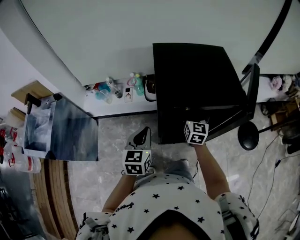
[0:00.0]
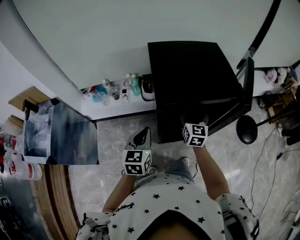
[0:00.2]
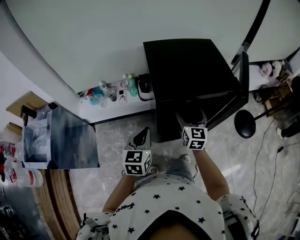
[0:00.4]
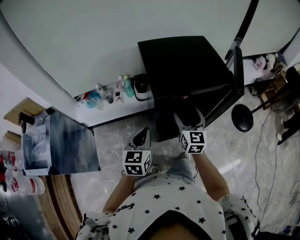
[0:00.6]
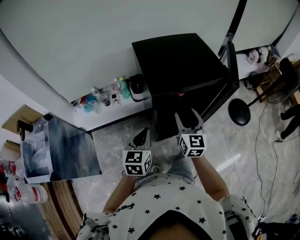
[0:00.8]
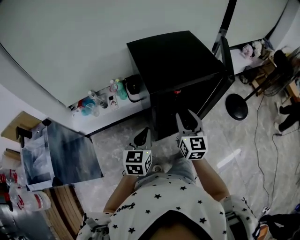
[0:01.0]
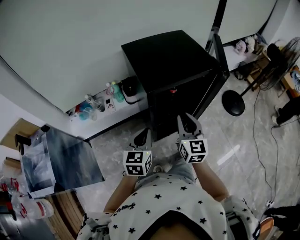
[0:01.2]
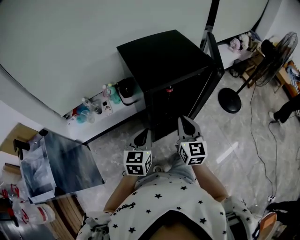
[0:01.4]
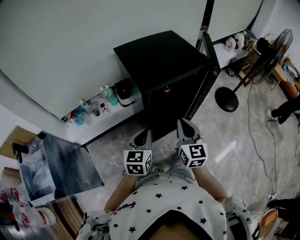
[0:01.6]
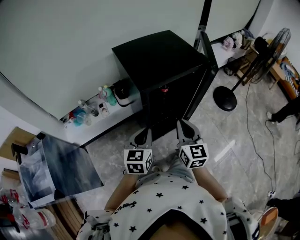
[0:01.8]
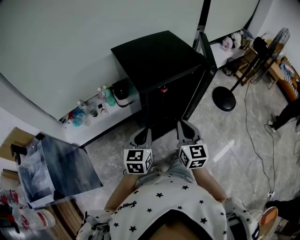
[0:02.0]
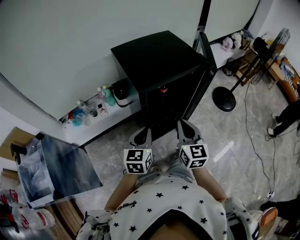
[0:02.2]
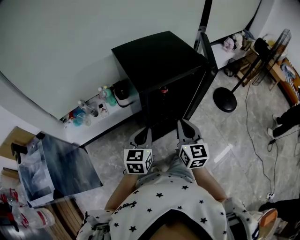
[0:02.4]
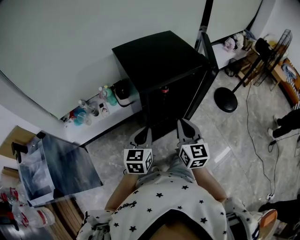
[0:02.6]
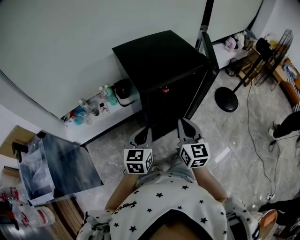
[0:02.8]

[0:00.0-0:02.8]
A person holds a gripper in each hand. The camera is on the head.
0.0 to 1.4 s: The right gripper heads backward, covering approximately 20 cm, and closes up, while the left gripper is displaced backward by approximately 5 cm, and rotates approximately 20 degrees.
1.4 to 2.8 s: There are only small adjustments of the grippers.

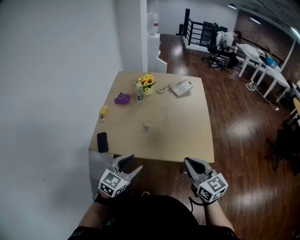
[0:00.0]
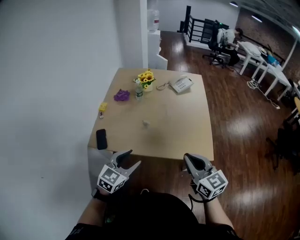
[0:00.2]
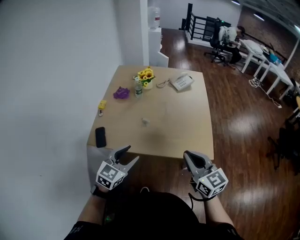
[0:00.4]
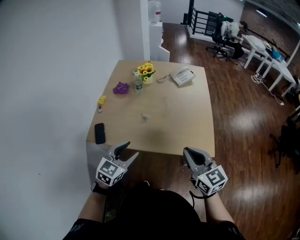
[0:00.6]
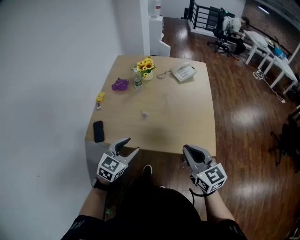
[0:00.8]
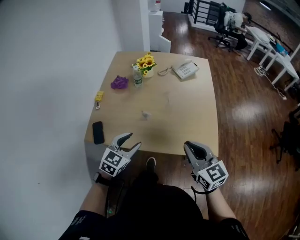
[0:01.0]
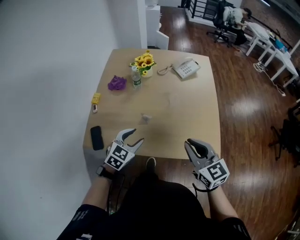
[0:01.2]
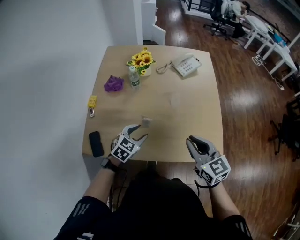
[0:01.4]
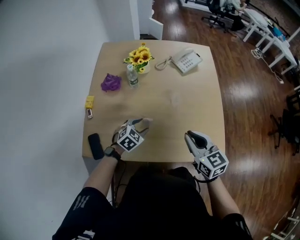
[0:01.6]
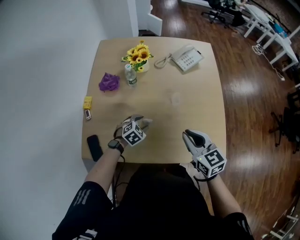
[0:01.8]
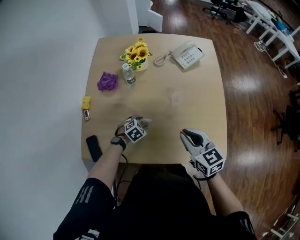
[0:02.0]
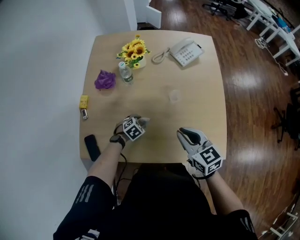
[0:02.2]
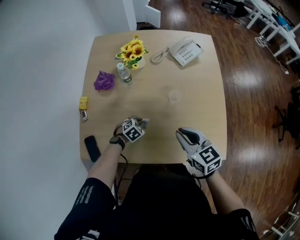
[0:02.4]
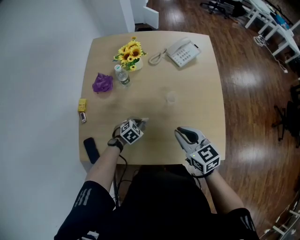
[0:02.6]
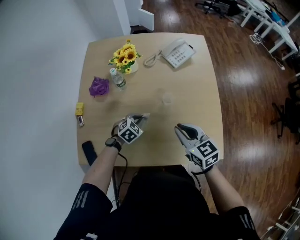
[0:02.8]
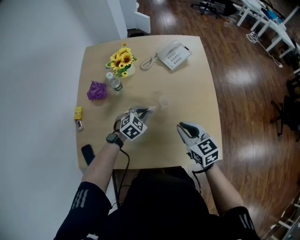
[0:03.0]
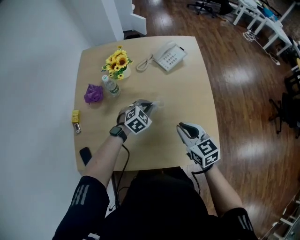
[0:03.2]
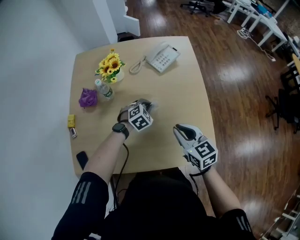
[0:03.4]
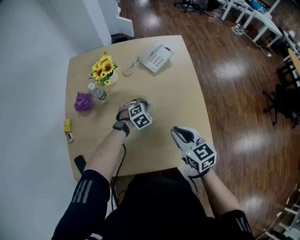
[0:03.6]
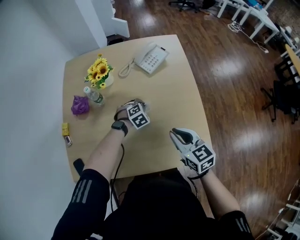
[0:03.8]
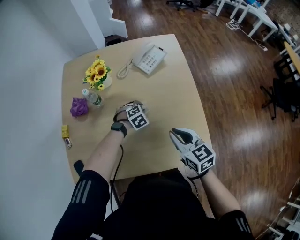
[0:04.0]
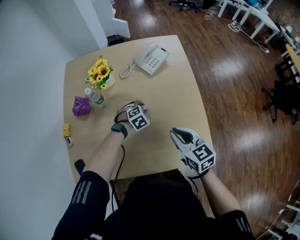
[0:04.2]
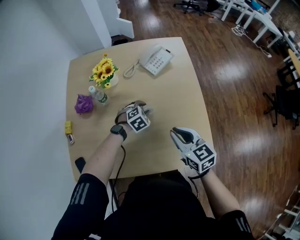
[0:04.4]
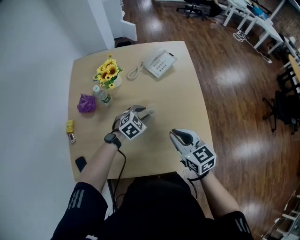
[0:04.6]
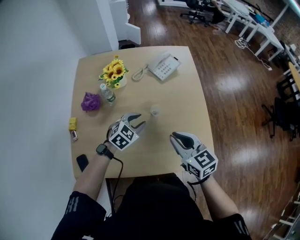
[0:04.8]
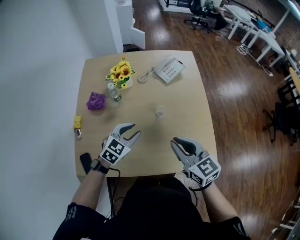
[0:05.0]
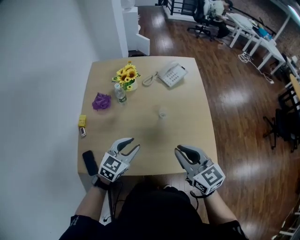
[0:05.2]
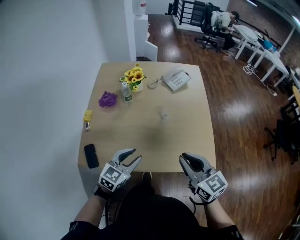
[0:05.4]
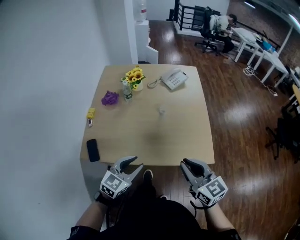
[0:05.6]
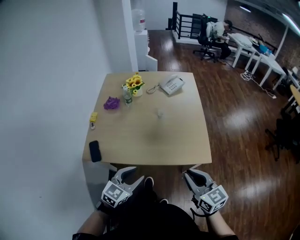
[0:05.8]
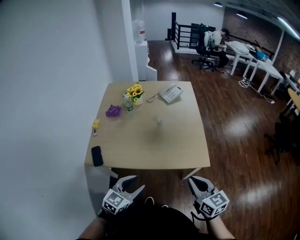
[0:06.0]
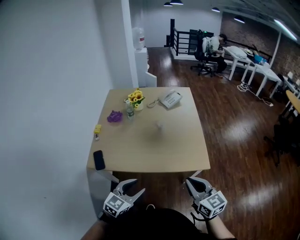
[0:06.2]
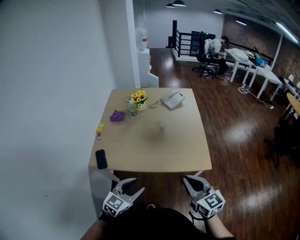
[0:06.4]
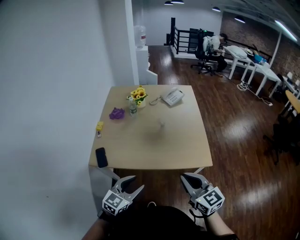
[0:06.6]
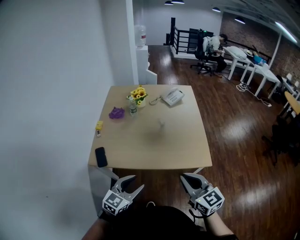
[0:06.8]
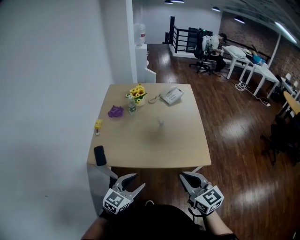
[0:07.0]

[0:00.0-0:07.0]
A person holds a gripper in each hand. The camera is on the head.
0.0 to 1.4 s: The right gripper shifts about 20 cm forward, while the left gripper goes roughly 30 cm forward and downward.
1.4 to 2.8 s: Both grippers move forward and downward, approximately 15 cm. The left gripper closes up.
2.8 to 4.2 s: The left gripper moves to the right and forward, some 15 cm, changes its angle by some 20 degrees, and opens its fingers, while the right gripper travels to the right by some 10 cm.
4.2 to 5.6 s: The right gripper moves backward and upward, approximately 30 cm. Meanwhile the left gripper heads backward and upward, covering about 50 cm, and points its fingers some 40 degrees further upward.
5.6 to 7.0 s: The grippers both shift backward by roughly 15 cm.

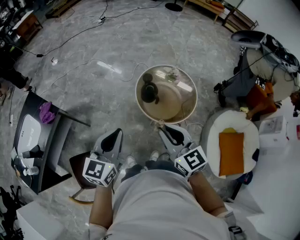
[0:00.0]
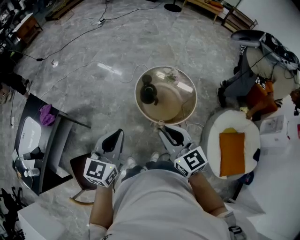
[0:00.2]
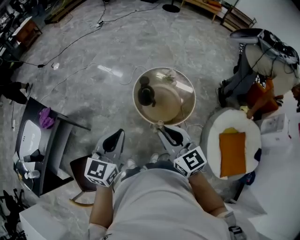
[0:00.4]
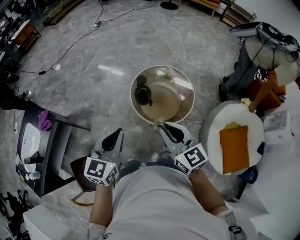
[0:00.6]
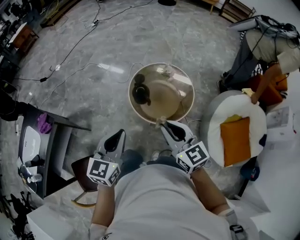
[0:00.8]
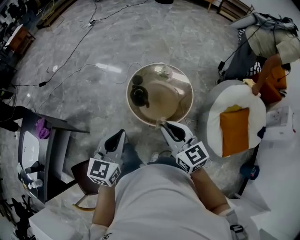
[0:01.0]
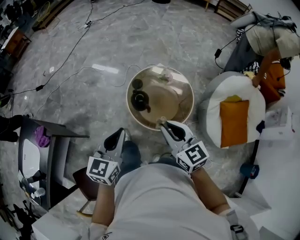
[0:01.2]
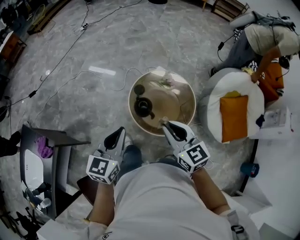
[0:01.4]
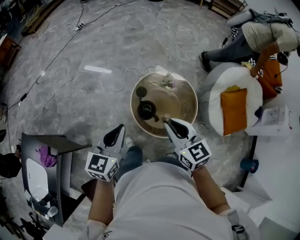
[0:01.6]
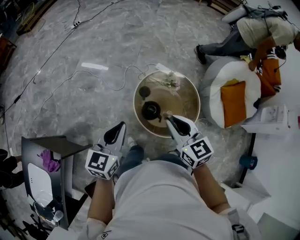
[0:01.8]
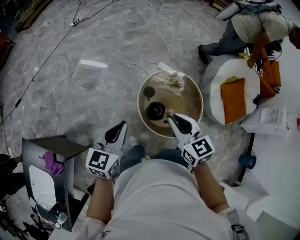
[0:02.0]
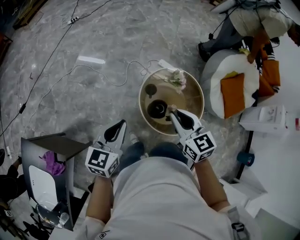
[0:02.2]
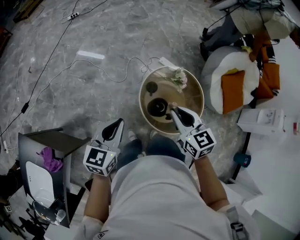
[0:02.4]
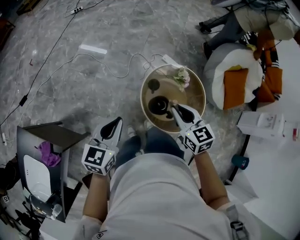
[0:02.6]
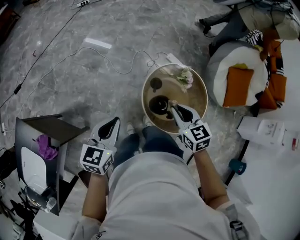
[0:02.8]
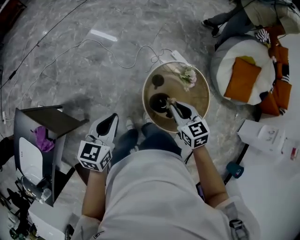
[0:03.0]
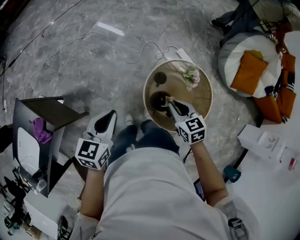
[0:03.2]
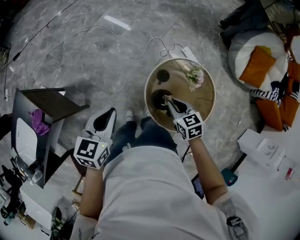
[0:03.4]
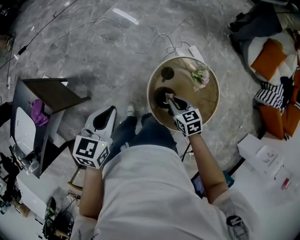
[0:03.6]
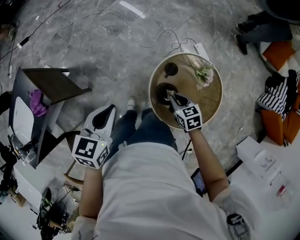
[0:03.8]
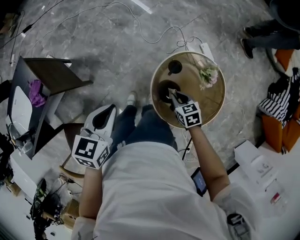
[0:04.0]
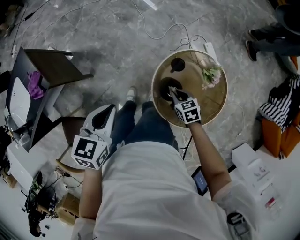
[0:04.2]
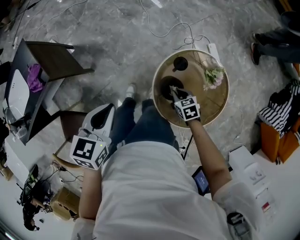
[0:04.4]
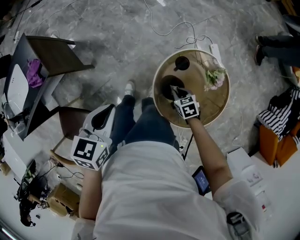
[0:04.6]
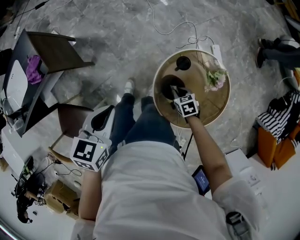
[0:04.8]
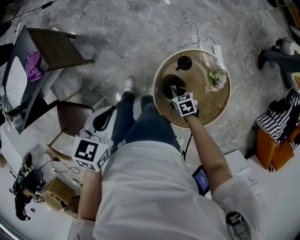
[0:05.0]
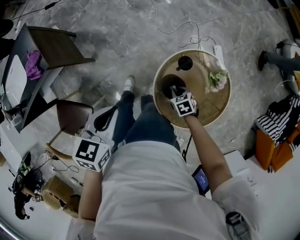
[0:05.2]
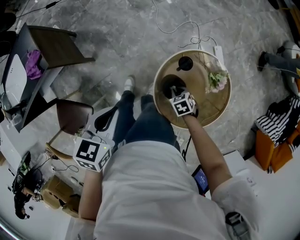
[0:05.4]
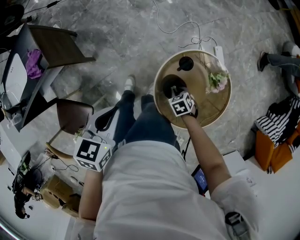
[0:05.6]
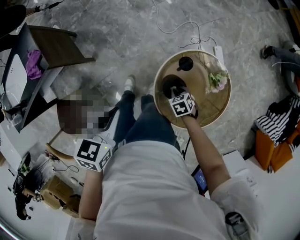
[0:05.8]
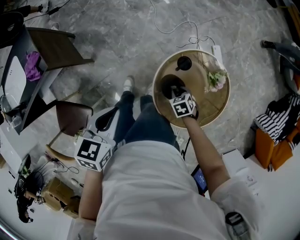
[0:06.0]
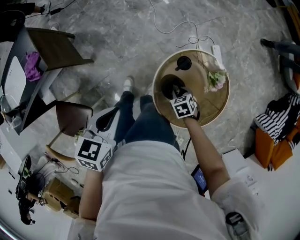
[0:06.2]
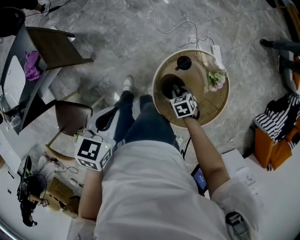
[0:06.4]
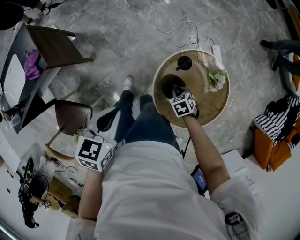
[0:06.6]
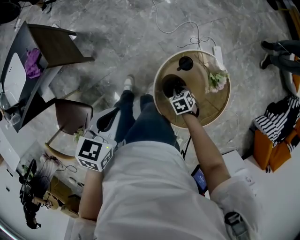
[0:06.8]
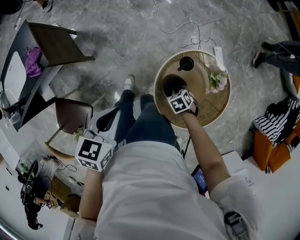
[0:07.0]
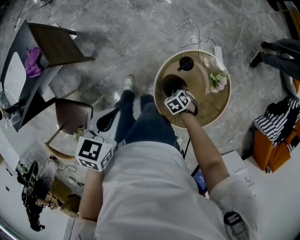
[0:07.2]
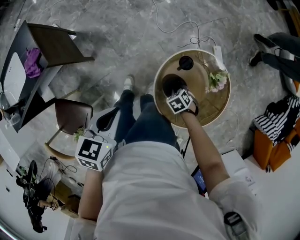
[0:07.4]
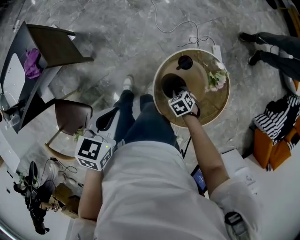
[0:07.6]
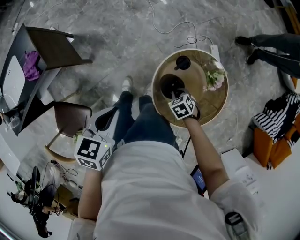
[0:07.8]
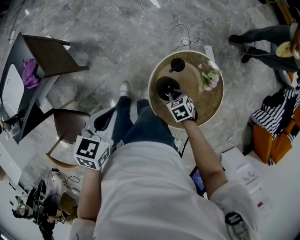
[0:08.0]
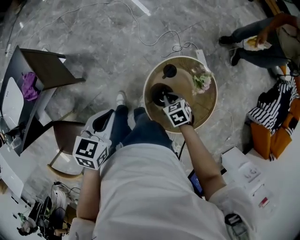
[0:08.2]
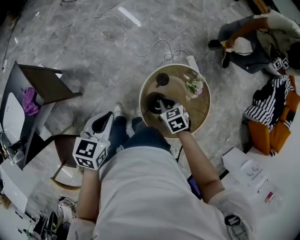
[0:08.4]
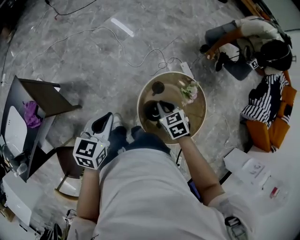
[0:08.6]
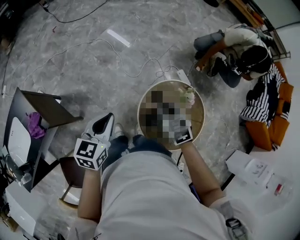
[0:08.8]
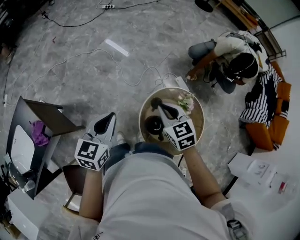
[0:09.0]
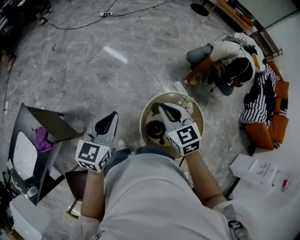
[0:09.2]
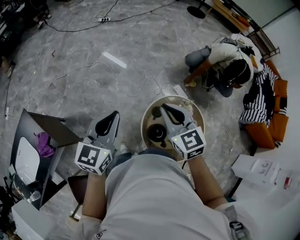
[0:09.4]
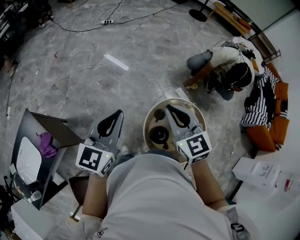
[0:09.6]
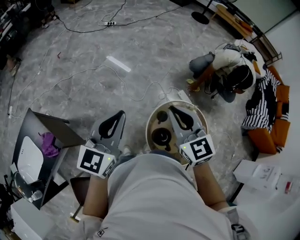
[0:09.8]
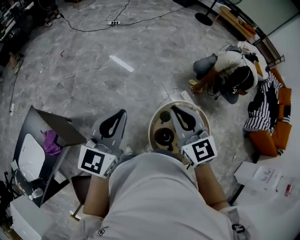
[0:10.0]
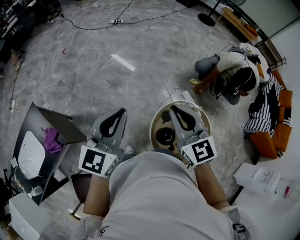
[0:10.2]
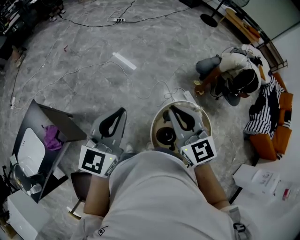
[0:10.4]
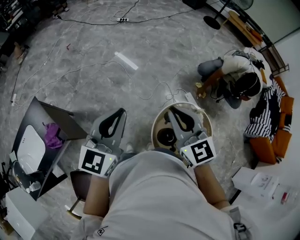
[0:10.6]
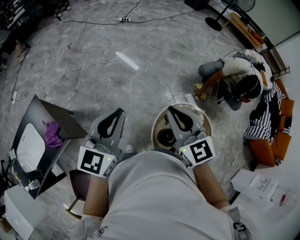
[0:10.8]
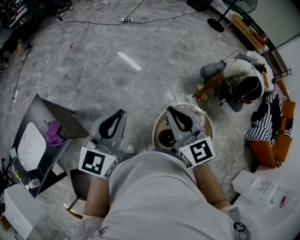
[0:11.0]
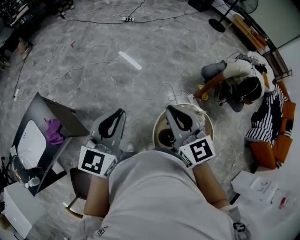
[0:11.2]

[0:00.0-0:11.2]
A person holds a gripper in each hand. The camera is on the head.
0.0 to 1.6 s: Both grippers move forward, roughly 25 cm.
1.6 to 3.2 s: The right gripper shifts about 20 cm downward and forward, and turns by some 30 degrees, while the left gripper goes approximately 15 cm to the left, forward and downward.
3.2 to 4.8 s: The left gripper moves about 10 cm, and swivels approximately 30 degrees. Meanwhile the right gripper is displaced downward by some 25 cm, and changes its angle by about 40 degrees.
4.8 to 6.4 s: The grippers stay close to where they were, moving slightly.
6.4 to 8.0 s: The grippers stay close to where they were, moving slightly.
8.0 to 9.6 s: The left gripper travels upward and forward by about 30 cm, and tips its fingers upward by roughly 40 degrees. Meanwhile the right gripper is displaced upward by some 40 cm, and angles its fingers upward, by some 50 degrees.
9.6 to 11.2 s: Both grippers travel together to the left, roughly 10 cm.

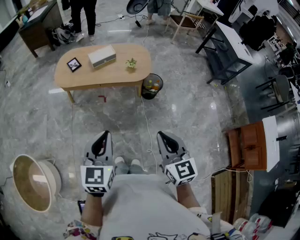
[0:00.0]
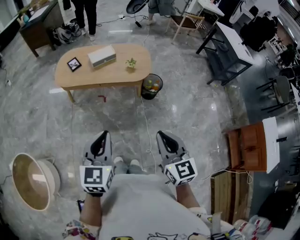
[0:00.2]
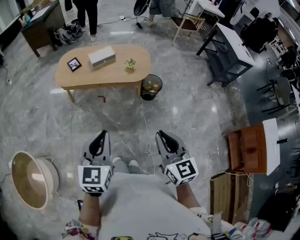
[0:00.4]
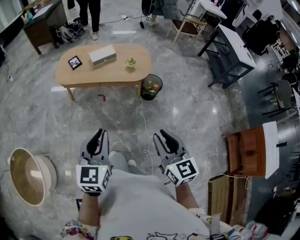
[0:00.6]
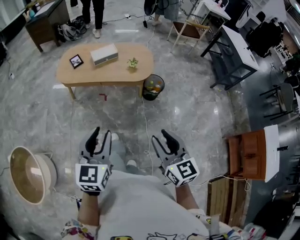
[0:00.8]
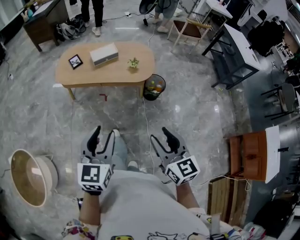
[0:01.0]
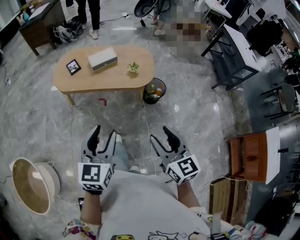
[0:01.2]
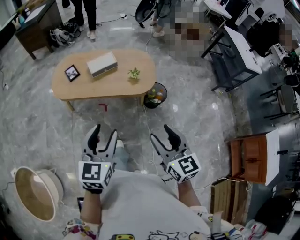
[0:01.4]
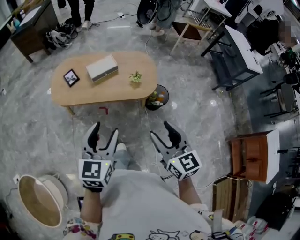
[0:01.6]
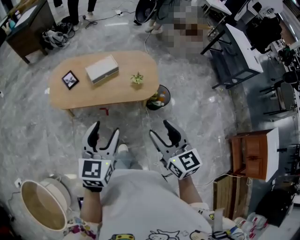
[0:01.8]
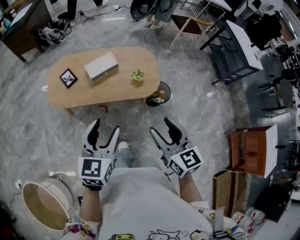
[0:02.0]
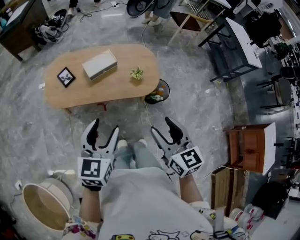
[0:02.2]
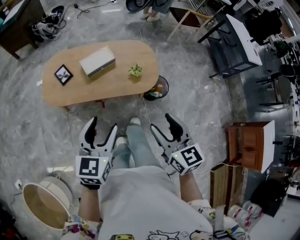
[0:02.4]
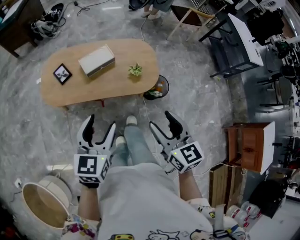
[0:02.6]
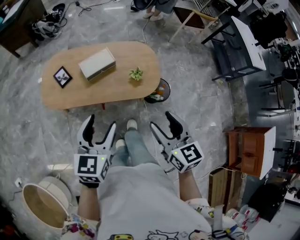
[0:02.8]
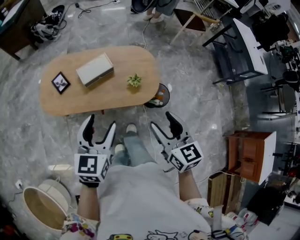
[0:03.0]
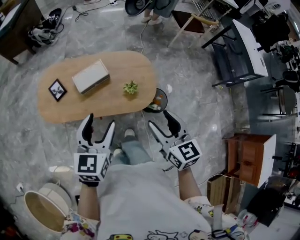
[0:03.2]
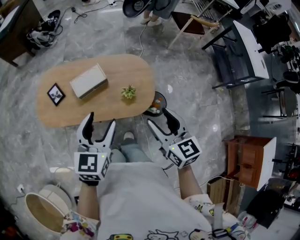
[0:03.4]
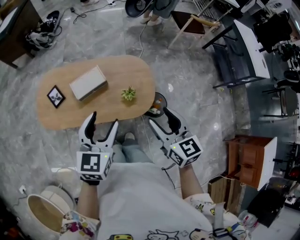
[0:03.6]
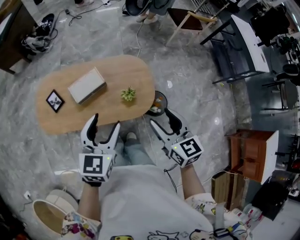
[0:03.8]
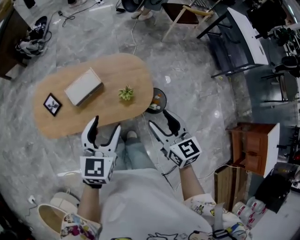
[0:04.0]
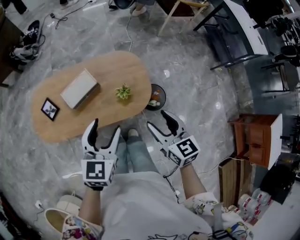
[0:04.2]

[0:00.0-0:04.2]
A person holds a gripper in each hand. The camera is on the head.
0.0 to 1.4 s: Both grippers travel together forward, about 15 cm. The right gripper opens its fingers, while the left gripper opens.
1.4 to 2.8 s: The grippers both shift forward by roughly 20 cm.
2.8 to 4.2 s: The left gripper shifts some 20 cm forward and to the right. Meanwhile the right gripper travels forward, to the right and downward by some 20 cm.
